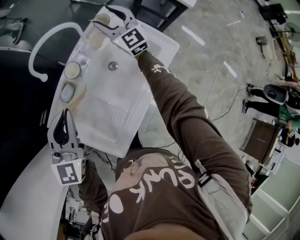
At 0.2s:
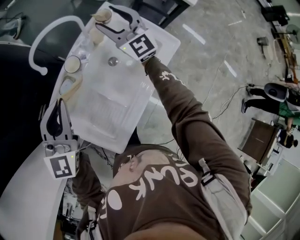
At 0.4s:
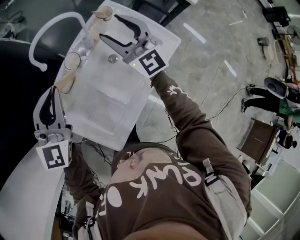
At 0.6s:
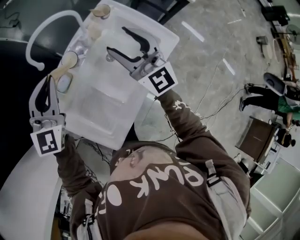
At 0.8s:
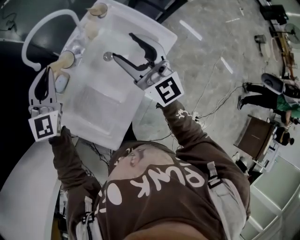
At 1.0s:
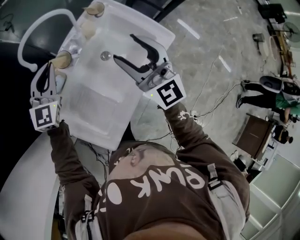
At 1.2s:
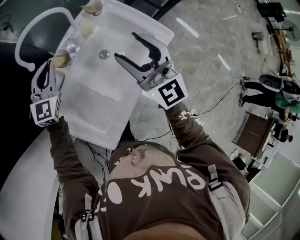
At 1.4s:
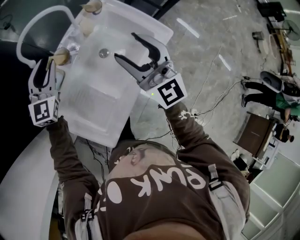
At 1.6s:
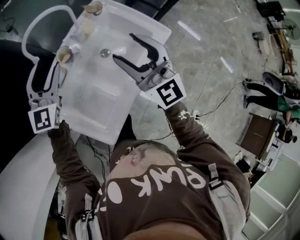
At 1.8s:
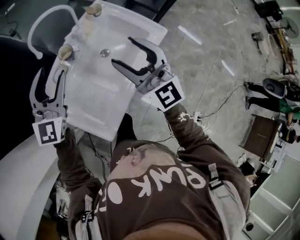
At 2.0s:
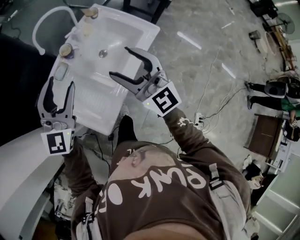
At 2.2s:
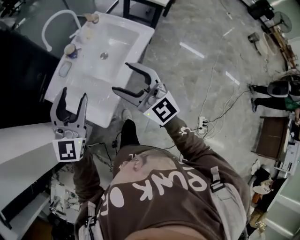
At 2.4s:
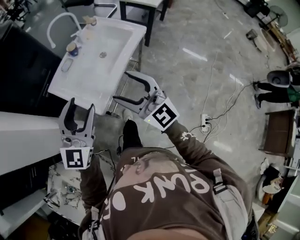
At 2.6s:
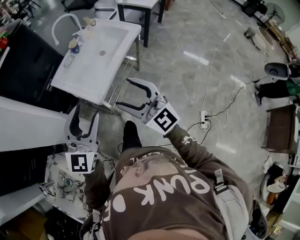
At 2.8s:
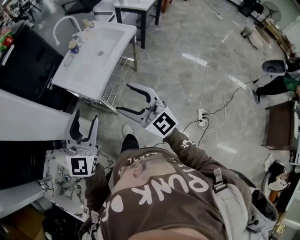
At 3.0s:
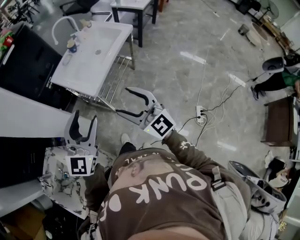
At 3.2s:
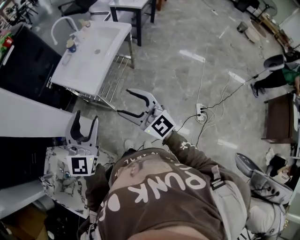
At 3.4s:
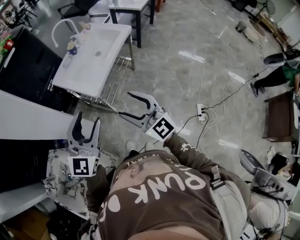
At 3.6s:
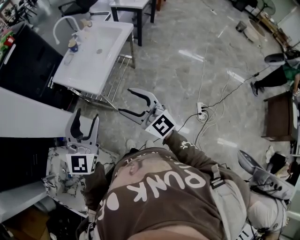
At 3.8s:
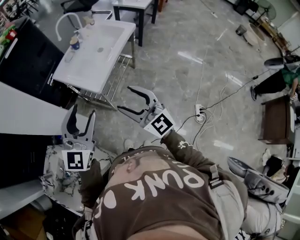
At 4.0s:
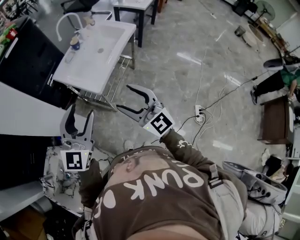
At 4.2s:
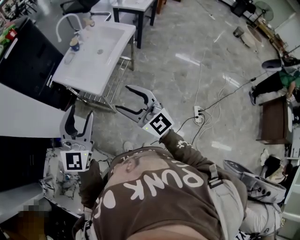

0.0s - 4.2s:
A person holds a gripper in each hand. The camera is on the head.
0.0s - 1.4s: The left gripper is displaced forward and downward by approximately 15 cm, and opens its fingers. The right gripper goes about 25 cm backward.
1.4s - 2.8s: The pair of grippers is taken backward, about 70 cm. The left gripper opens.
2.8s - 4.2s: Both grippers travel together to the left, about 5 cm.

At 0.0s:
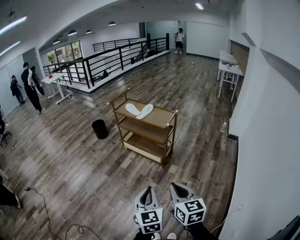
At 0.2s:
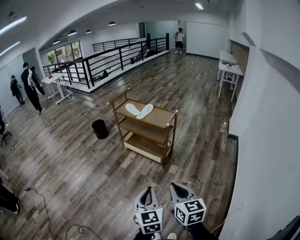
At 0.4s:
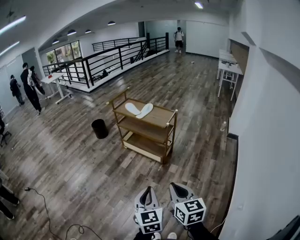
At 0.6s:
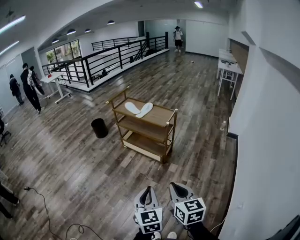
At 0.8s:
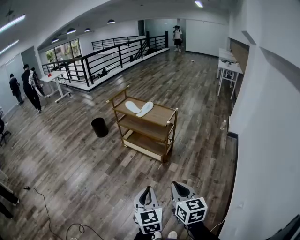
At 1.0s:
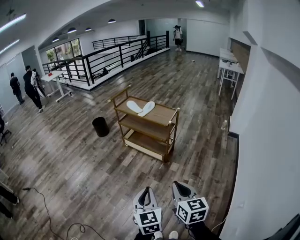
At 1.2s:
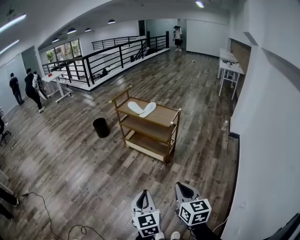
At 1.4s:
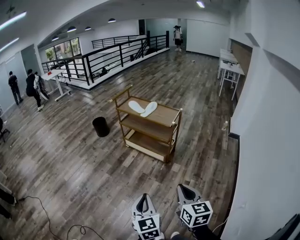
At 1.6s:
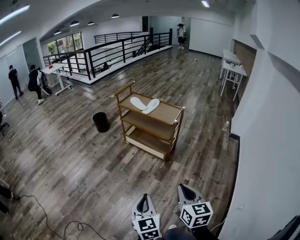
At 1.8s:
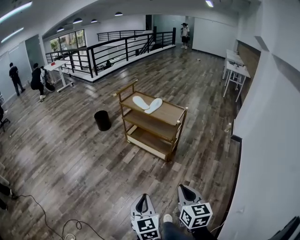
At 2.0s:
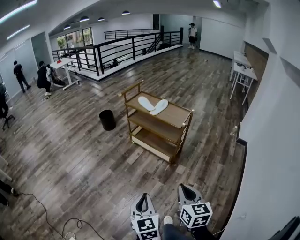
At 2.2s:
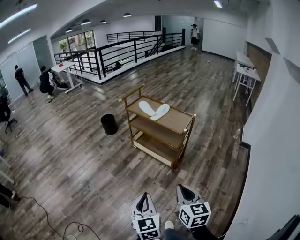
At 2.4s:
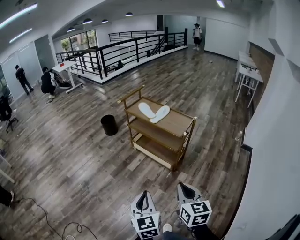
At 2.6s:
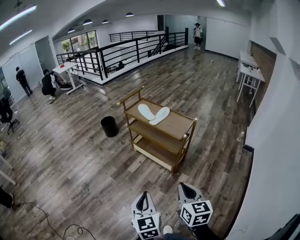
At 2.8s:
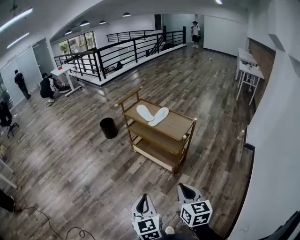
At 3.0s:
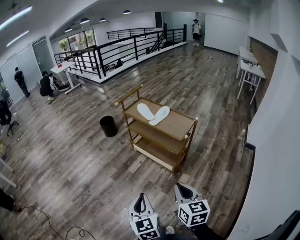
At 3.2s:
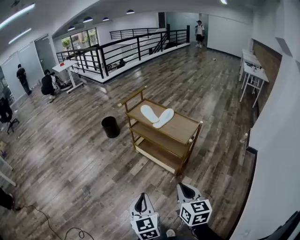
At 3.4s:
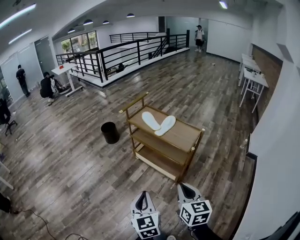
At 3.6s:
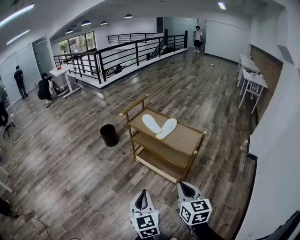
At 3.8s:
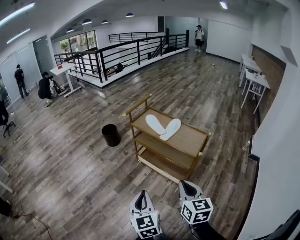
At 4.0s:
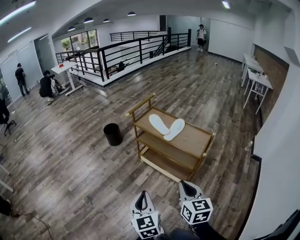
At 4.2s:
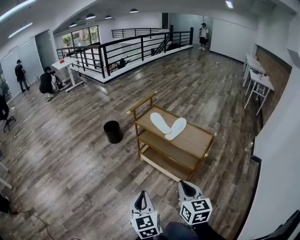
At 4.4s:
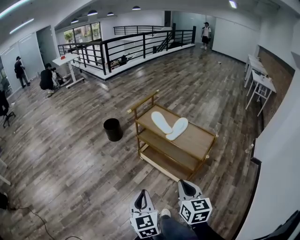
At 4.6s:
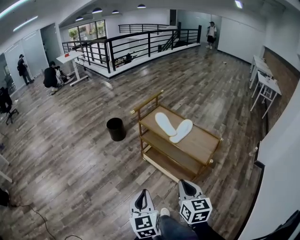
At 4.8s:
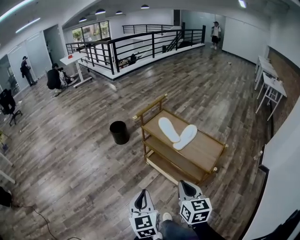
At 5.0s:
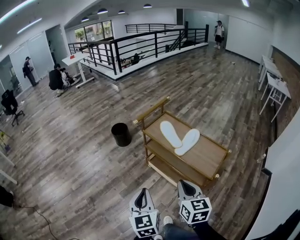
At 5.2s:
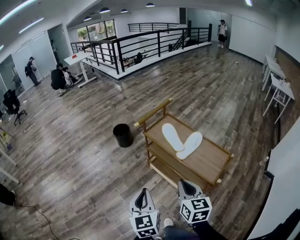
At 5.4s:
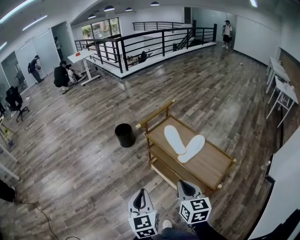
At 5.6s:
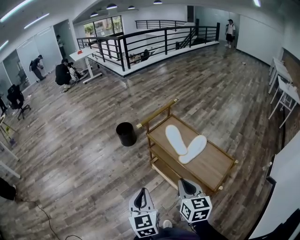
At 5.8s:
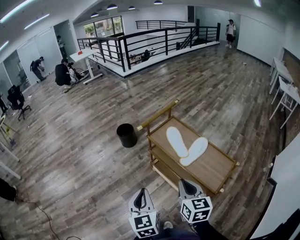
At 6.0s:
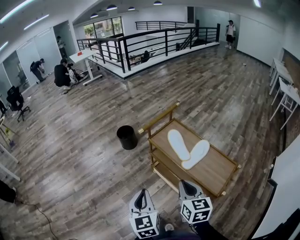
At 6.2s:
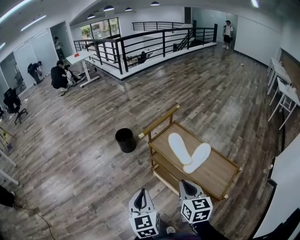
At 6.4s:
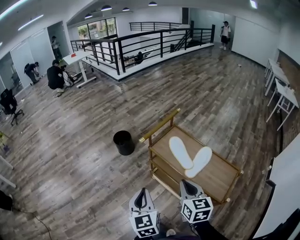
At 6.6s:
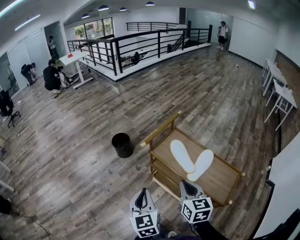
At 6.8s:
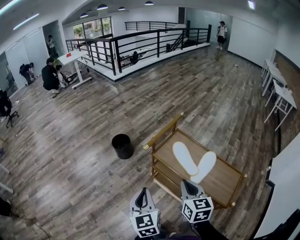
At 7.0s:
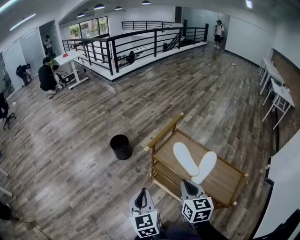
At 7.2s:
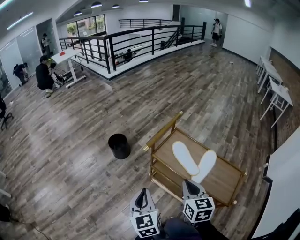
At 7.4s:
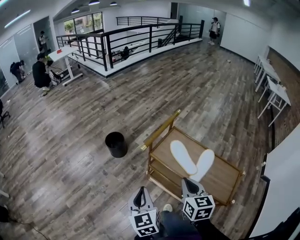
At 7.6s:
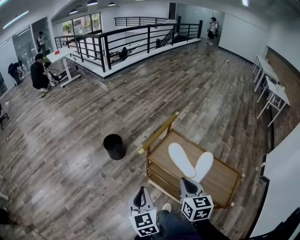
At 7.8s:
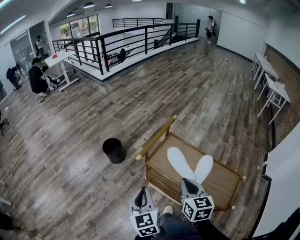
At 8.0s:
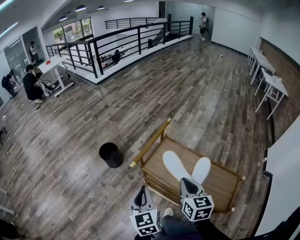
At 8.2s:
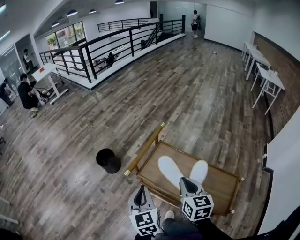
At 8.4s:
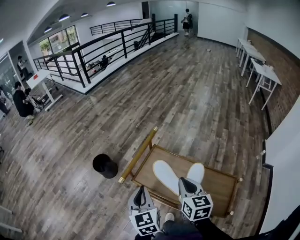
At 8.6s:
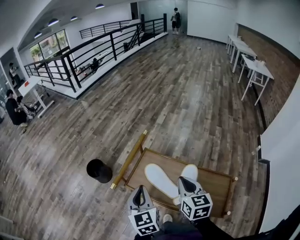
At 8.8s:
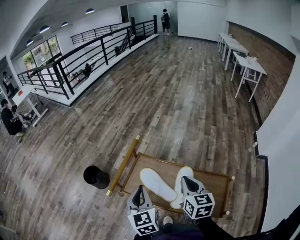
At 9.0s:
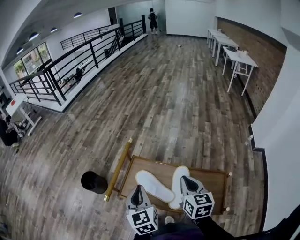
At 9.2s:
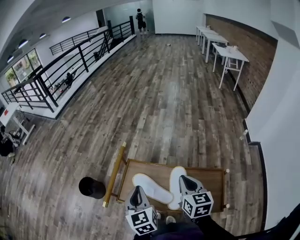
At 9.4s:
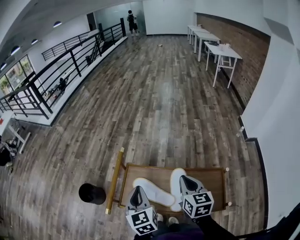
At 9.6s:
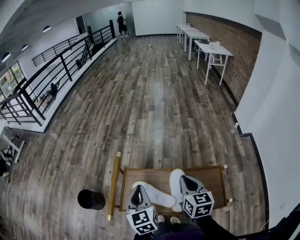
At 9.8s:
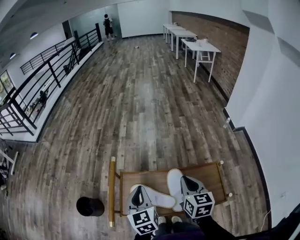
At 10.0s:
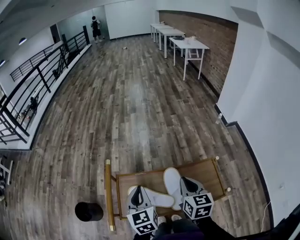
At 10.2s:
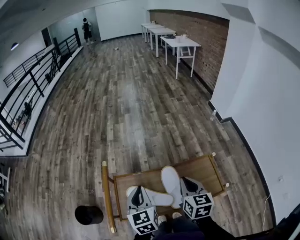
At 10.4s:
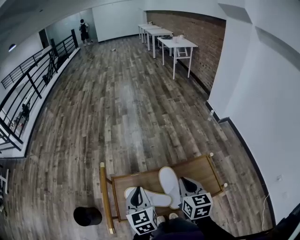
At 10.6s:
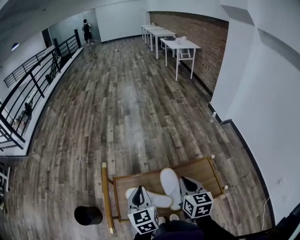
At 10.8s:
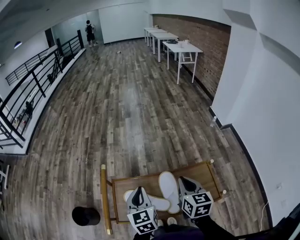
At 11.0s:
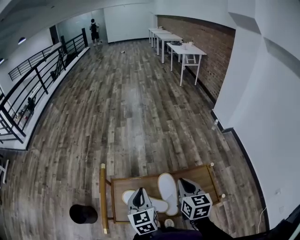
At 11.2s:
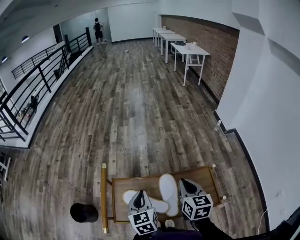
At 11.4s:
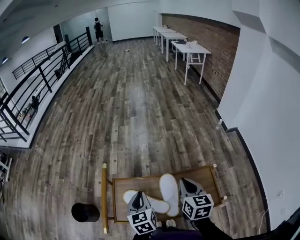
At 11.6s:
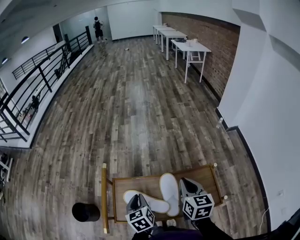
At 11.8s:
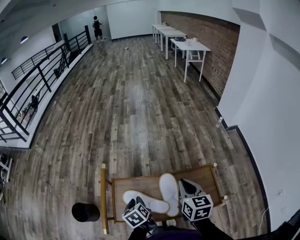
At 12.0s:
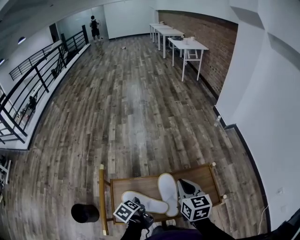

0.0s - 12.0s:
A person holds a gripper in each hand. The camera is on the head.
0.0s - 1.6s: The left gripper is displaced to the left by some 10 cm.
1.6s - 3.0s: Both grippers travel together forward, about 20 cm.
3.0s - 4.4s: The right gripper heads forward, covering approximately 20 cm. Meanwhile the left gripper is displaced forward and to the left by roughly 20 cm.
4.4s - 6.0s: The two grippers go about 25 cm forward.
6.0s - 7.6s: Both grippers move forward, some 15 cm.
7.6s - 9.0s: The right gripper is displaced to the right and forward by approximately 25 cm, and swivels approximately 20 degrees. The left gripper moves forward and to the right, roughly 25 cm.
9.0s - 10.4s: The right gripper rotates roughly 30 degrees, while the left gripper changes place by some 10 cm, and changes its angle by some 30 degrees.
10.4s - 12.0s: The left gripper heads downward, covering approximately 20 cm, rolls counterclockwise, seen from behind, by some 50 degrees, and opens up.

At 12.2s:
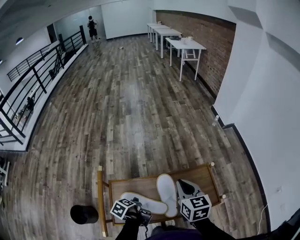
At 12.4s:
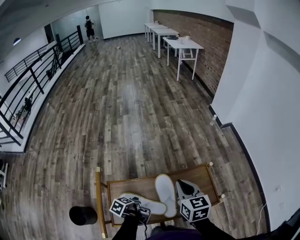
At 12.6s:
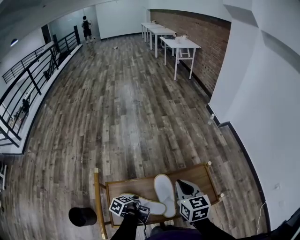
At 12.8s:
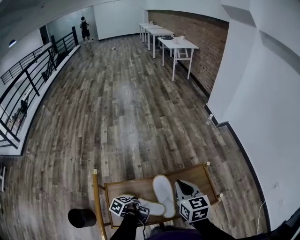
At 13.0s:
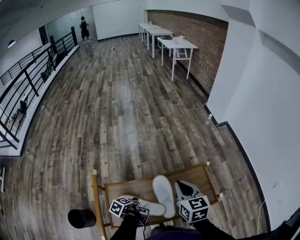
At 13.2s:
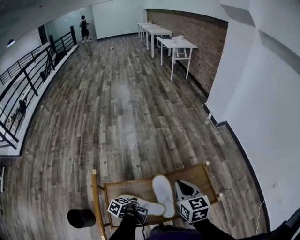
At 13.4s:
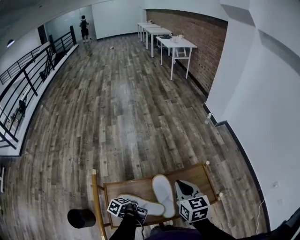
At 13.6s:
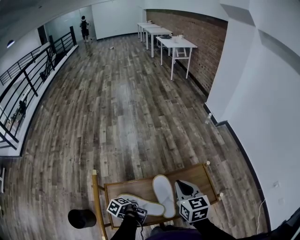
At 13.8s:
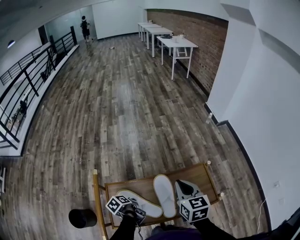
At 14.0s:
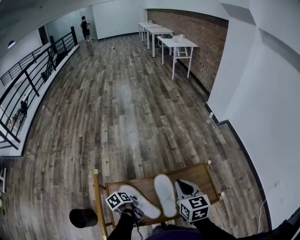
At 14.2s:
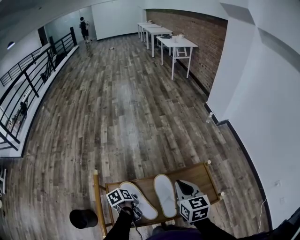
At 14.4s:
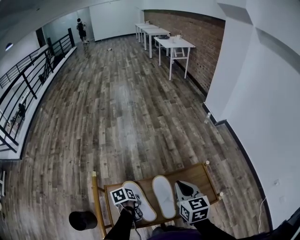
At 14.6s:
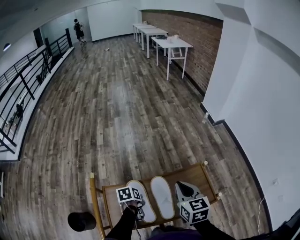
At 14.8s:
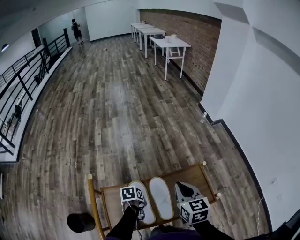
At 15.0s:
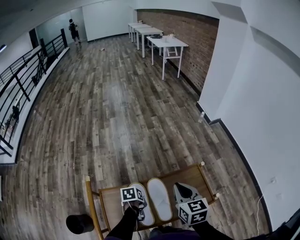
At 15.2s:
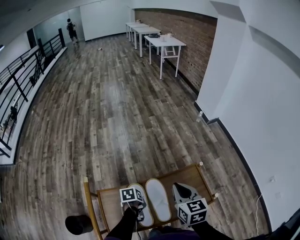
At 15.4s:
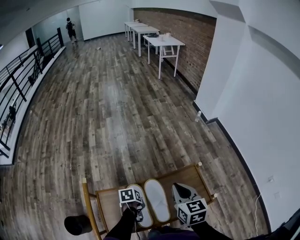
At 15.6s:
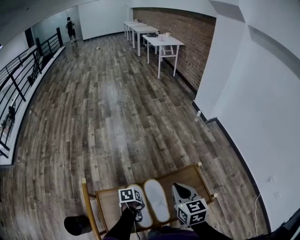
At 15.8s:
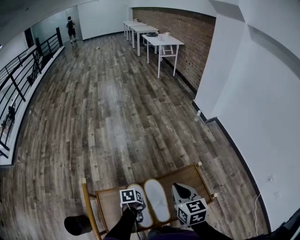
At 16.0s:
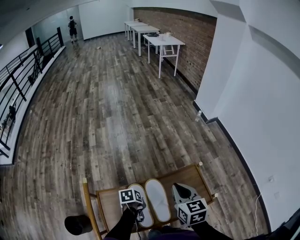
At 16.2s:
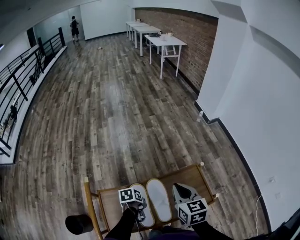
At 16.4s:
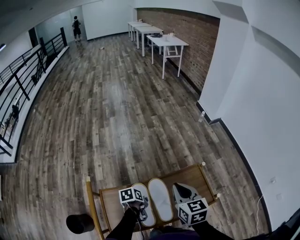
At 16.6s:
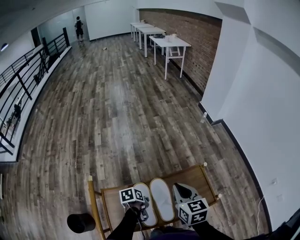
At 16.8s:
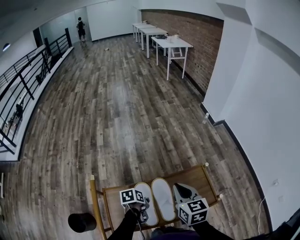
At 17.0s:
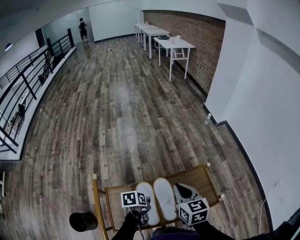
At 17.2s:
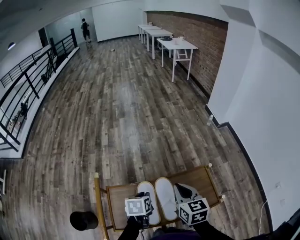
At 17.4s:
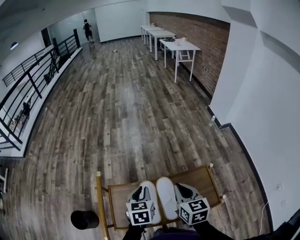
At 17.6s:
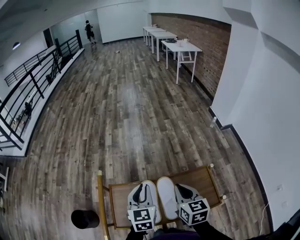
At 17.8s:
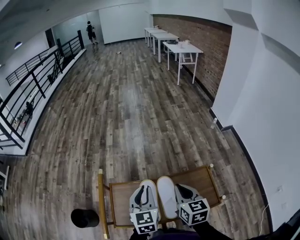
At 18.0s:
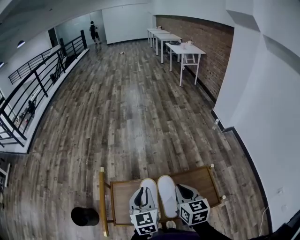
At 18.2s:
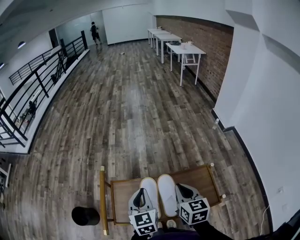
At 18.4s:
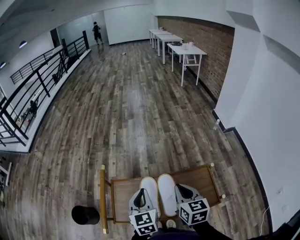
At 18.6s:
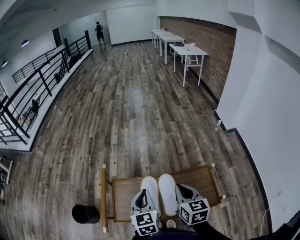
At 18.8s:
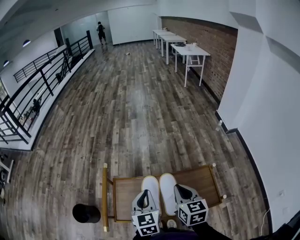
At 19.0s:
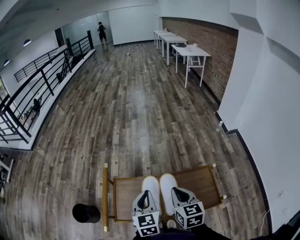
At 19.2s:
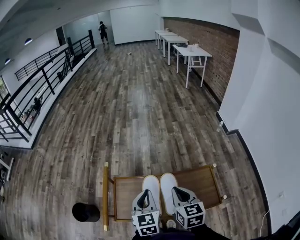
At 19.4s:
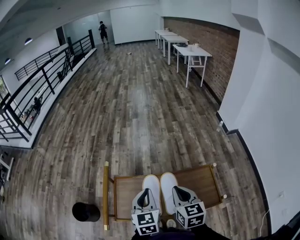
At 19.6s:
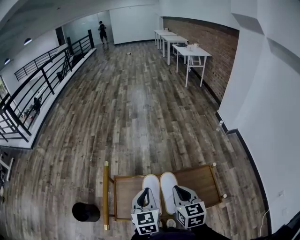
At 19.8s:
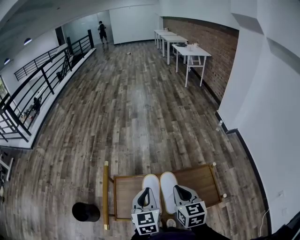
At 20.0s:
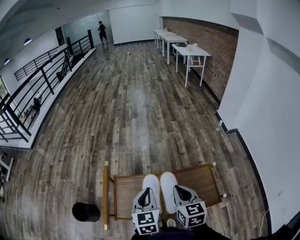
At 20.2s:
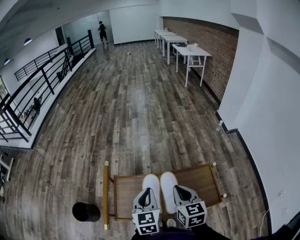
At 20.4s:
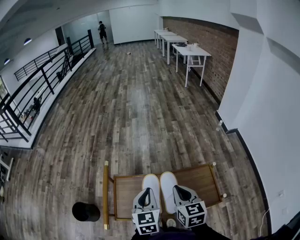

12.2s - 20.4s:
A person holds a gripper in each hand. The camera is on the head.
12.2s - 13.8s: The left gripper closes.
13.8s - 15.4s: The left gripper heads to the right and forward, covering about 10 cm, and twists some 40 degrees clockwise, seen from behind.
15.4s - 17.2s: The left gripper moves upward, roughly 10 cm, and swivels roughly 30 degrees.
17.2s - 18.8s: The left gripper goes approximately 10 cm upward and backward, and points its fingers approximately 30 degrees further upward.
18.8s - 20.4s: The grippers move only a little.
